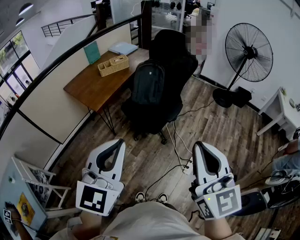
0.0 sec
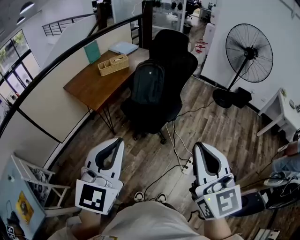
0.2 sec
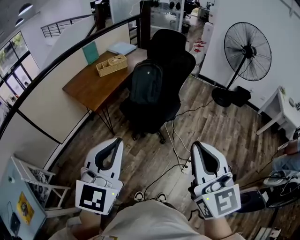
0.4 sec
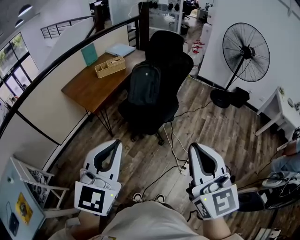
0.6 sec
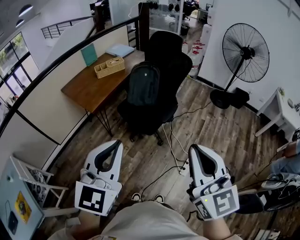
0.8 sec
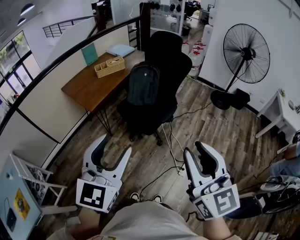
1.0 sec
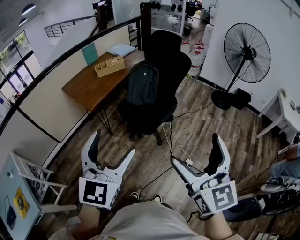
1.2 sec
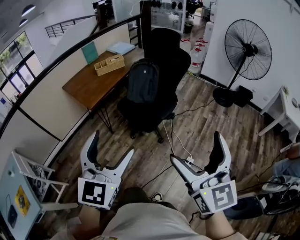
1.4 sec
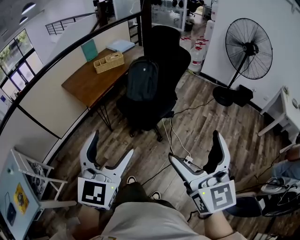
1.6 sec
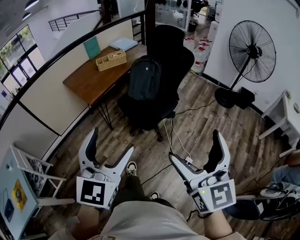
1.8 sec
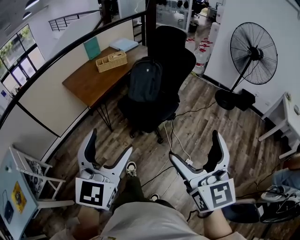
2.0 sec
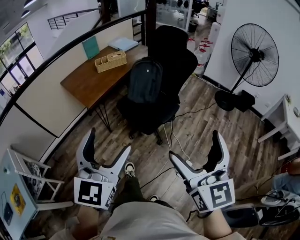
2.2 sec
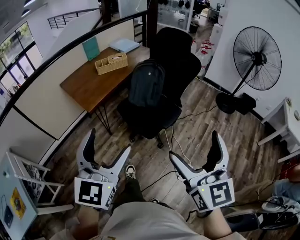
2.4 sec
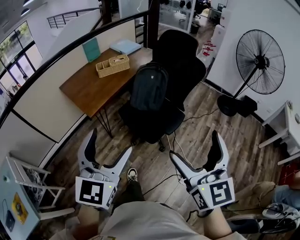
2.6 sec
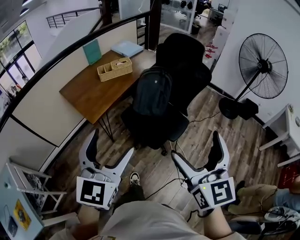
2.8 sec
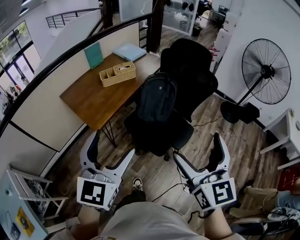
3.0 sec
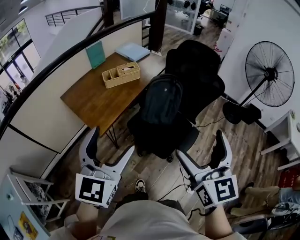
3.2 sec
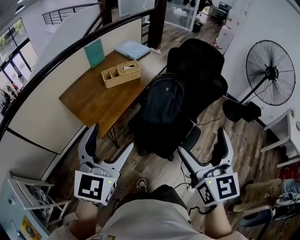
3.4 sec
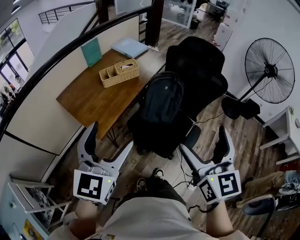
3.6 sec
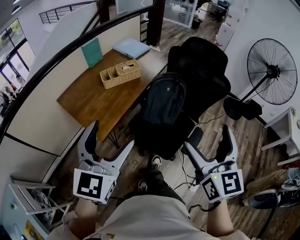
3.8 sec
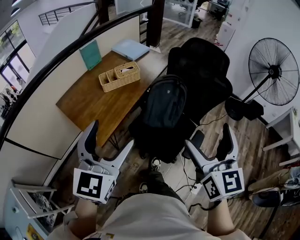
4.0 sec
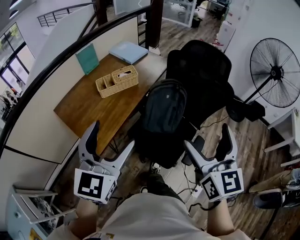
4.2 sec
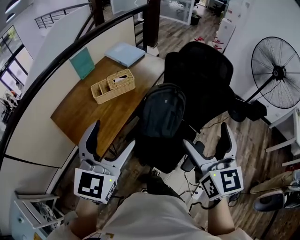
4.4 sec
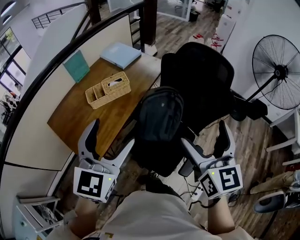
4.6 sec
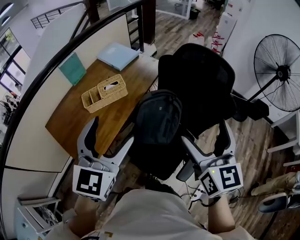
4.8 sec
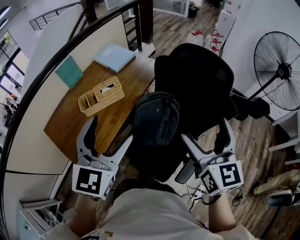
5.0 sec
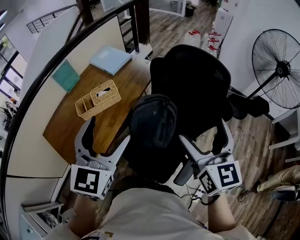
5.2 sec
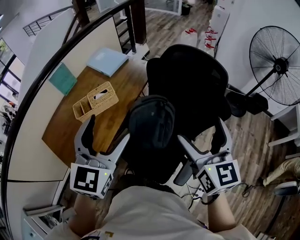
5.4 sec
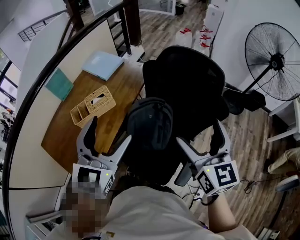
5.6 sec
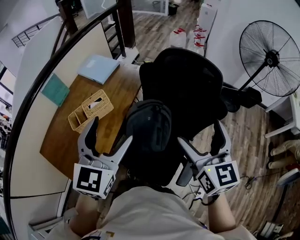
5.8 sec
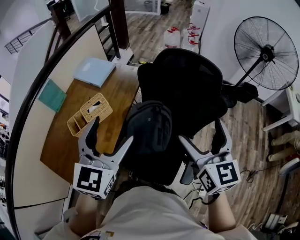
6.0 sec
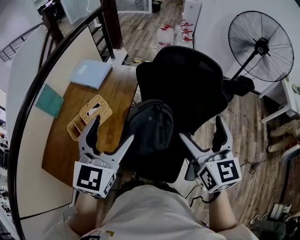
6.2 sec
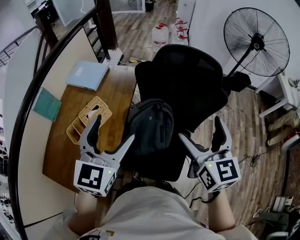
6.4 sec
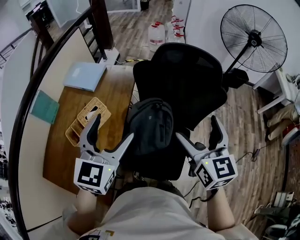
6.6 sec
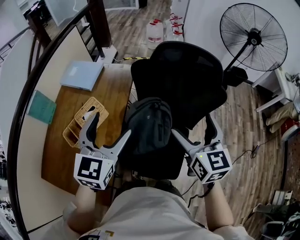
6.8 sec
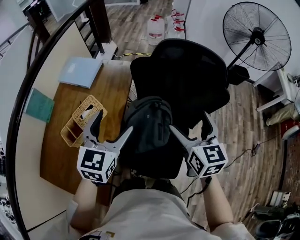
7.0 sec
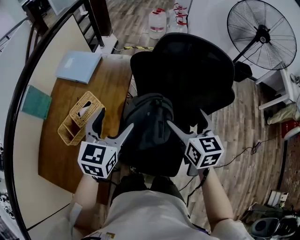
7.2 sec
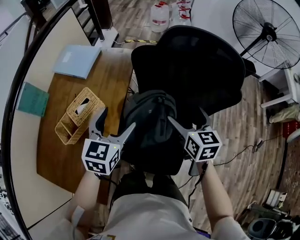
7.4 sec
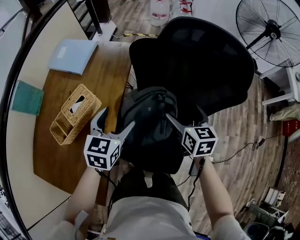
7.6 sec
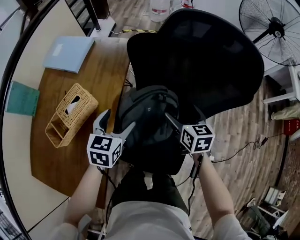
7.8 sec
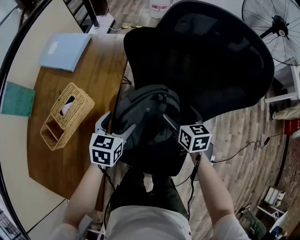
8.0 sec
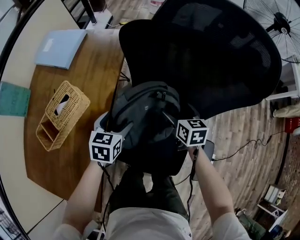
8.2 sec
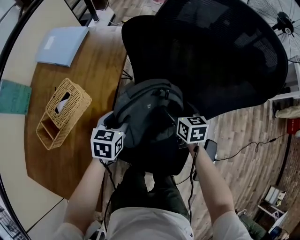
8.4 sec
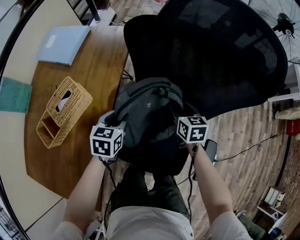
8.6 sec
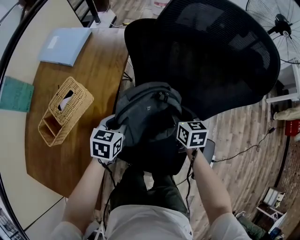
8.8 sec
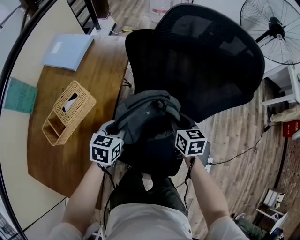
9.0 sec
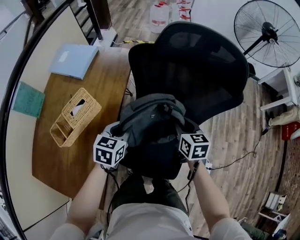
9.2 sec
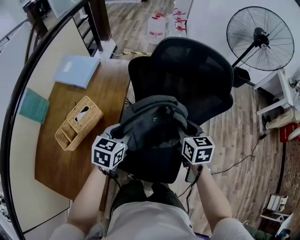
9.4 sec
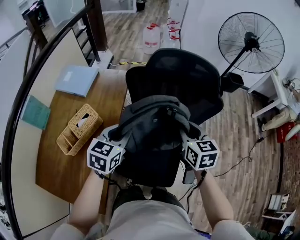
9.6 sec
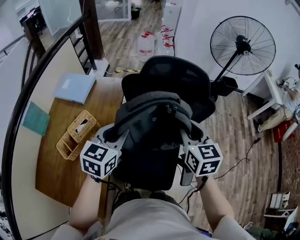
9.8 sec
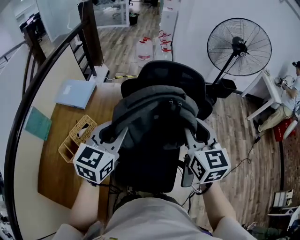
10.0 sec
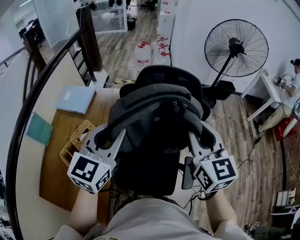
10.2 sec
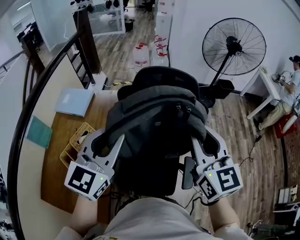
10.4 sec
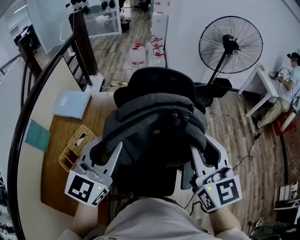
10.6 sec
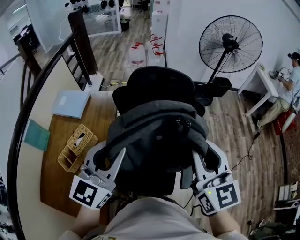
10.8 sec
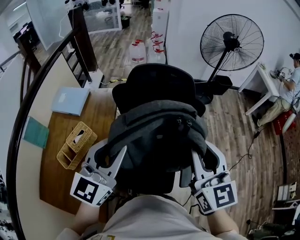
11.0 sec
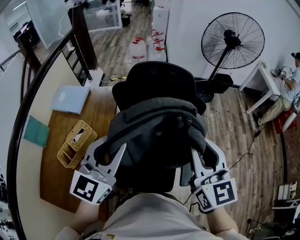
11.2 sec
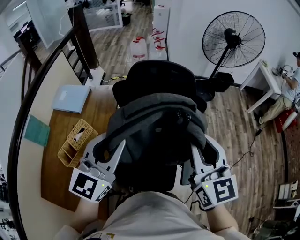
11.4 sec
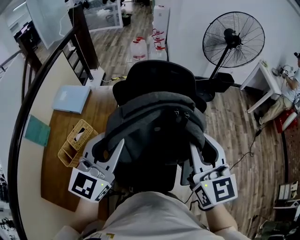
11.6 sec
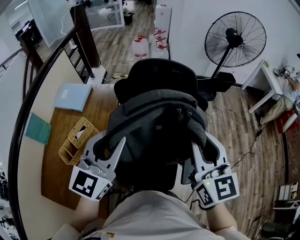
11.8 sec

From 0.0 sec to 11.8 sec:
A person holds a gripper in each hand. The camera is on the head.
From 0.0 sec to 1.4 sec: The grippers both shift to the right by roughly 10 cm. The left gripper opens its fingers. The right gripper opens.
From 1.4 sec to 3.0 sec: Both grippers move forward and to the left, about 30 cm.
From 3.0 sec to 4.4 sec: The grippers both shift forward by about 25 cm.
From 4.4 sec to 6.0 sec: Both grippers travel together forward, roughly 20 cm.
From 6.0 sec to 7.4 sec: The grippers both shift downward and forward by some 25 cm. The left gripper turns by some 20 degrees. Meanwhile the right gripper swivels roughly 20 degrees.
From 7.4 sec to 8.8 sec: The two grippers go roughly 25 cm downward. The right gripper closes up, while the left gripper swivels some 20 degrees, and closes.
From 8.8 sec to 10.4 sec: Both grippers move upward, about 50 cm. The right gripper angles its fingers upward, by approximately 30 degrees. The left gripper tilts its fingers about 40 degrees upward.
From 10.4 sec to 11.8 sec: The grippers stay close to where they were, moving slightly.

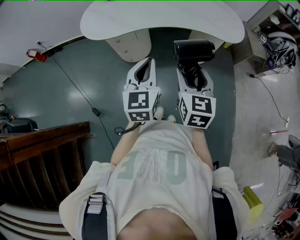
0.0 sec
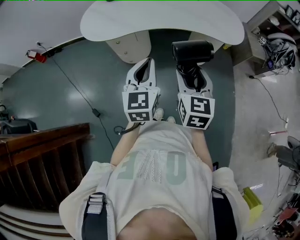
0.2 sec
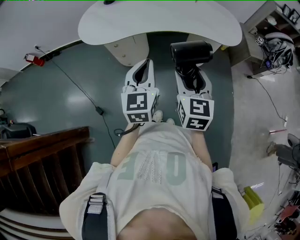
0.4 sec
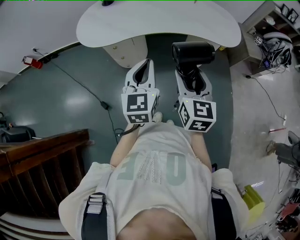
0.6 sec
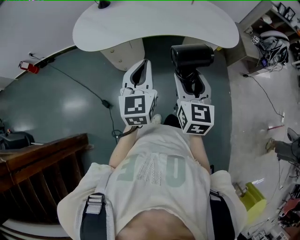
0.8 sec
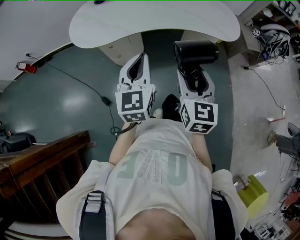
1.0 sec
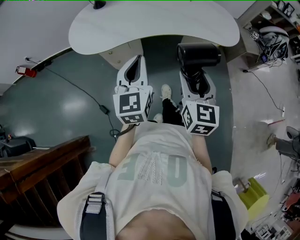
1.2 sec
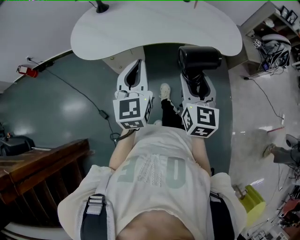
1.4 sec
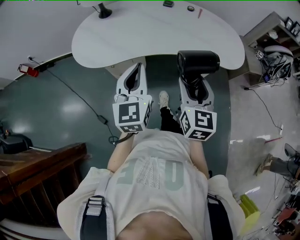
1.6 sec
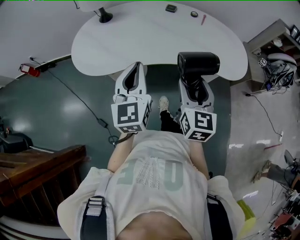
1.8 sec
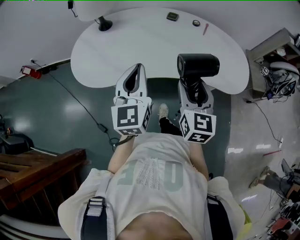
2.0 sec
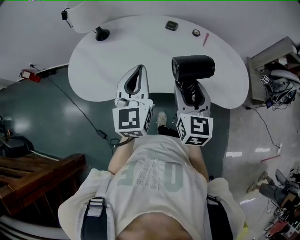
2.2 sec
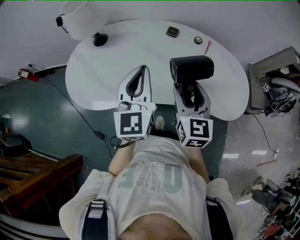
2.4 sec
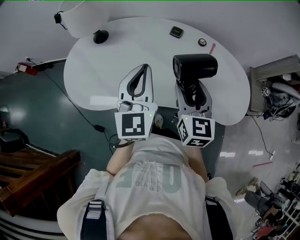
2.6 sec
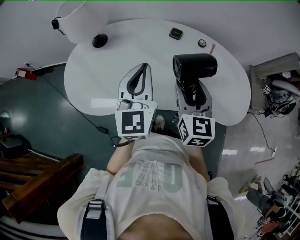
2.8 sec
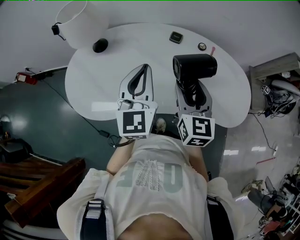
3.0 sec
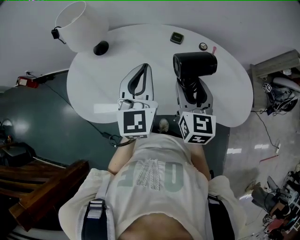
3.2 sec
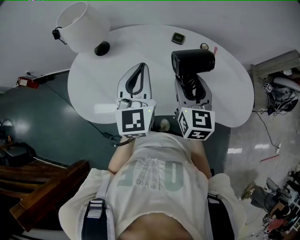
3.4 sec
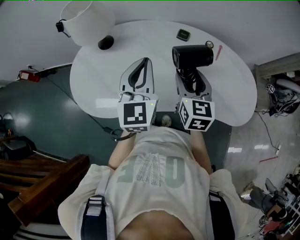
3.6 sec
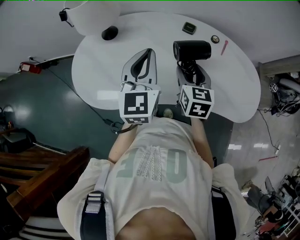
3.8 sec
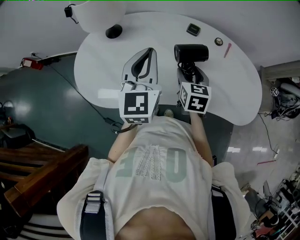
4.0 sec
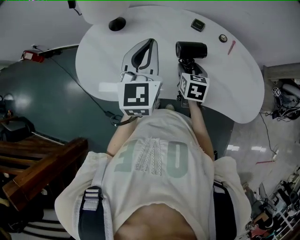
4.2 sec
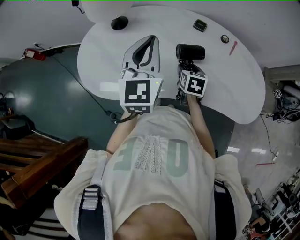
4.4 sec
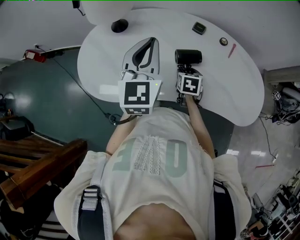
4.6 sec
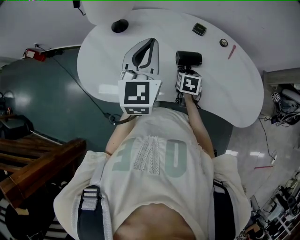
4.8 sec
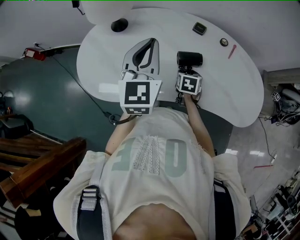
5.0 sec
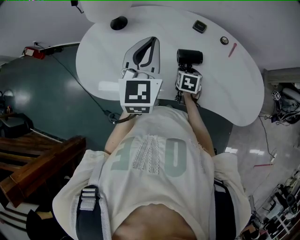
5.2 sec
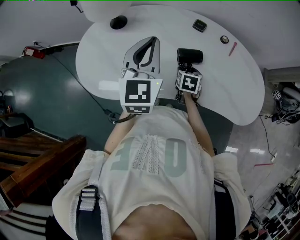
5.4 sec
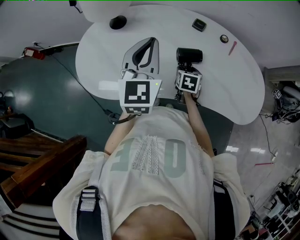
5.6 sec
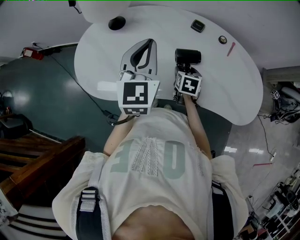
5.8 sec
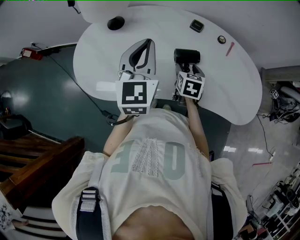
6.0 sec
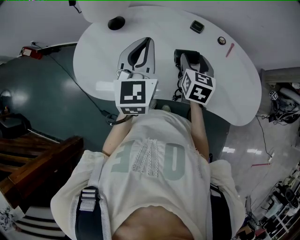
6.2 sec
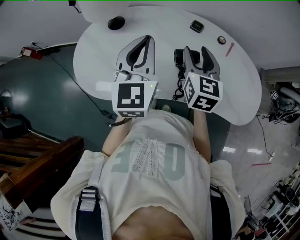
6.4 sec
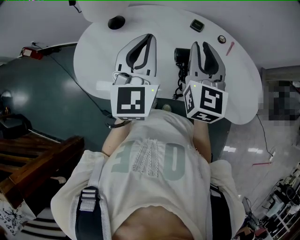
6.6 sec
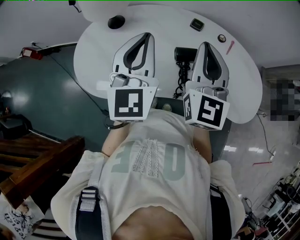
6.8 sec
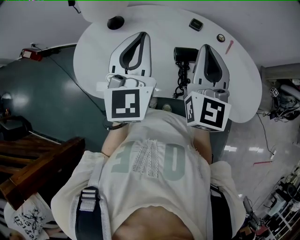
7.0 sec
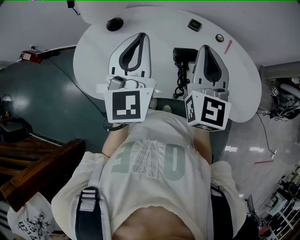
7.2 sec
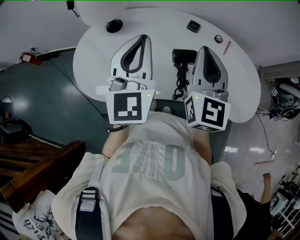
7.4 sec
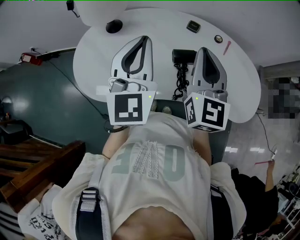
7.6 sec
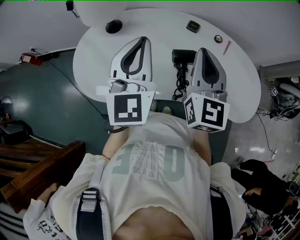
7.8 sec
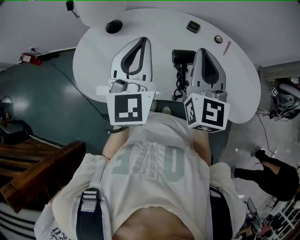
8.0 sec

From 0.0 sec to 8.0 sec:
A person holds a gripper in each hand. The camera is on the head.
From 0.0 sec to 1.6 sec: The grippers both shift forward by approximately 15 cm.
From 1.6 sec to 3.2 sec: The two grippers go approximately 35 cm forward.
From 3.2 sec to 4.8 sec: The left gripper heads to the left, covering approximately 5 cm. The right gripper shifts some 25 cm downward, and points its fingers approximately 40 degrees further downward.
From 4.8 sec to 6.4 sec: The right gripper is displaced upward by approximately 25 cm, and angles its fingers upward, by roughly 40 degrees.
From 6.4 sec to 8.0 sec: The right gripper shifts about 10 cm upward, and closes.

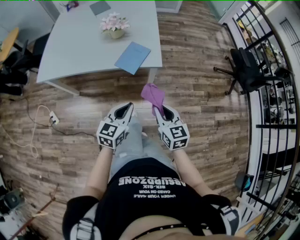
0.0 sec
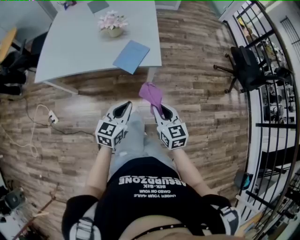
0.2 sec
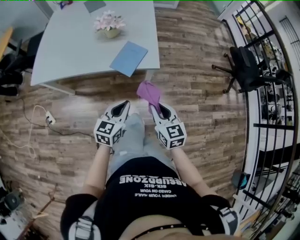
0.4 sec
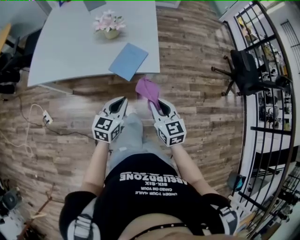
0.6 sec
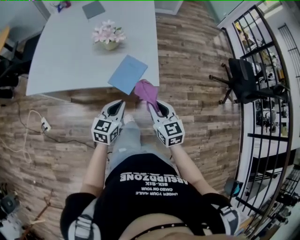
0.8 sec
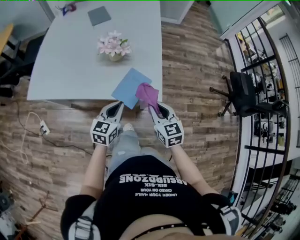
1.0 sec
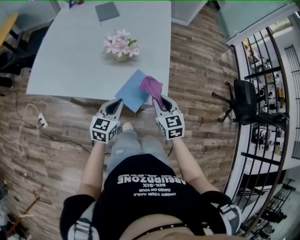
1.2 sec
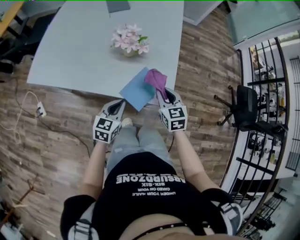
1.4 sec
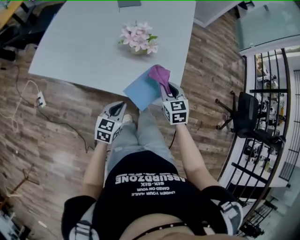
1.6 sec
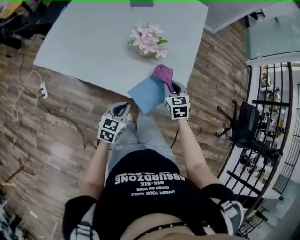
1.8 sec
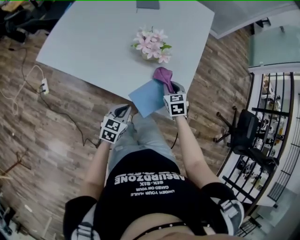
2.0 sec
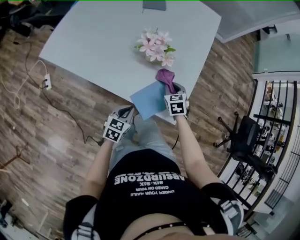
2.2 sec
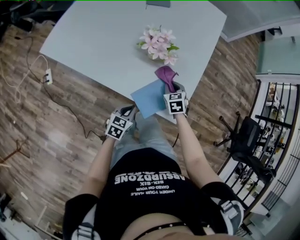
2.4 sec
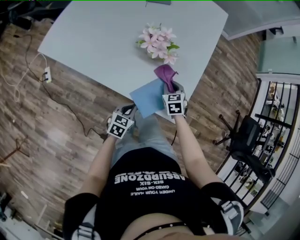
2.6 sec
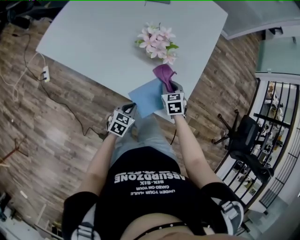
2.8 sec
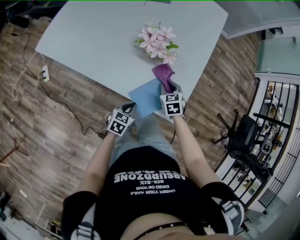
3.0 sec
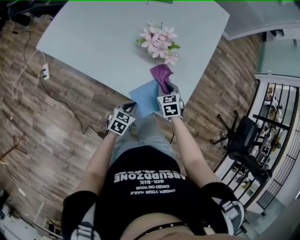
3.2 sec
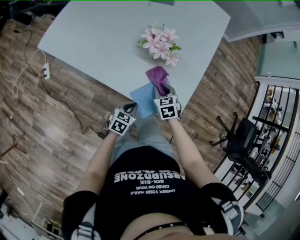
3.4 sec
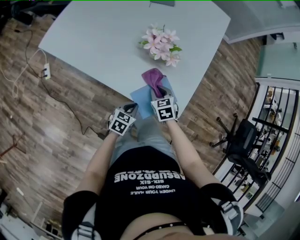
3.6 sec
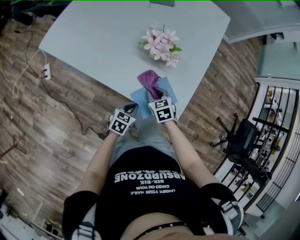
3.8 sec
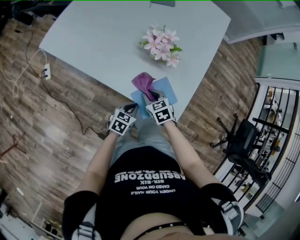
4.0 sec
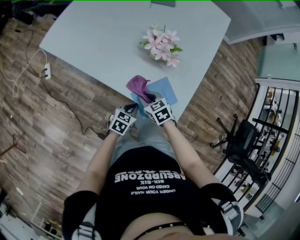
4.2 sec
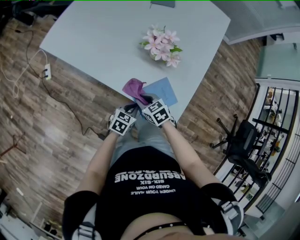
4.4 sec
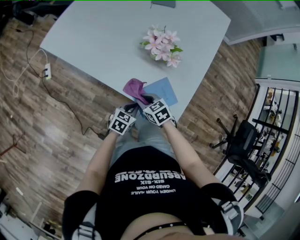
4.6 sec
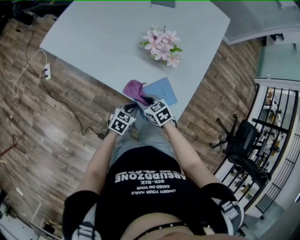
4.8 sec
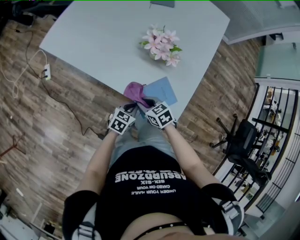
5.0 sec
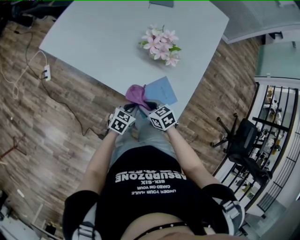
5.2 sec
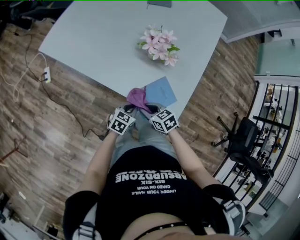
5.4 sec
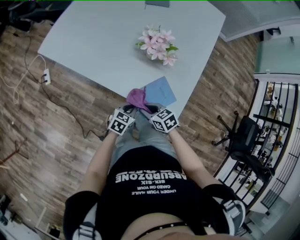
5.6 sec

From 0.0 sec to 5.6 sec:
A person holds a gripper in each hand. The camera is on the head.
From 0.0 sec to 1.4 sec: Both grippers travel together forward, approximately 30 cm. The right gripper rotates approximately 20 degrees.
From 1.4 sec to 2.8 sec: The left gripper travels downward by some 10 cm; the right gripper goes some 15 cm downward and forward, and turns by roughly 20 degrees.
From 2.8 sec to 4.2 sec: The right gripper shifts roughly 15 cm to the left and backward, and rotates about 30 degrees.
From 4.2 sec to 5.6 sec: The right gripper moves backward, approximately 5 cm.
